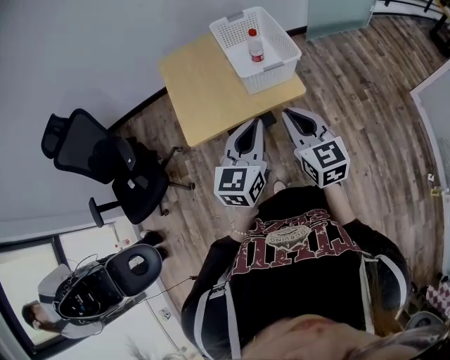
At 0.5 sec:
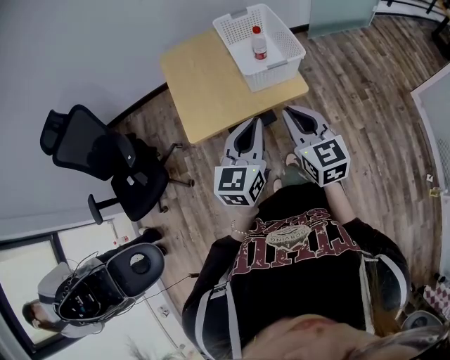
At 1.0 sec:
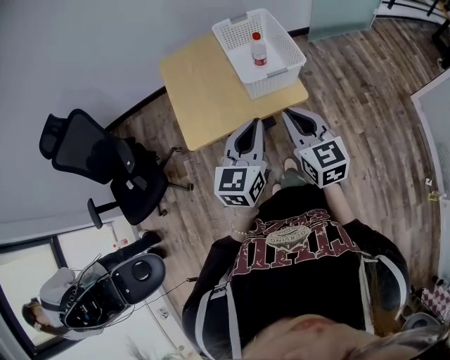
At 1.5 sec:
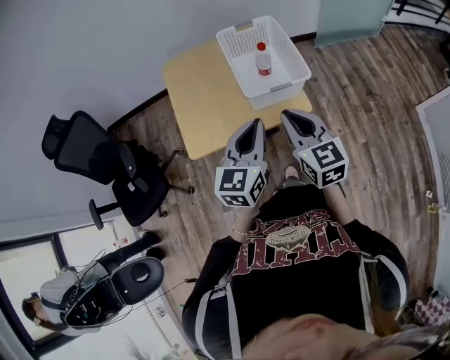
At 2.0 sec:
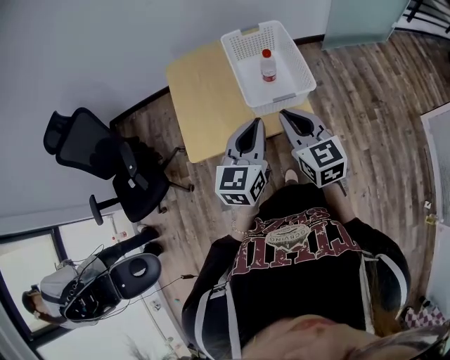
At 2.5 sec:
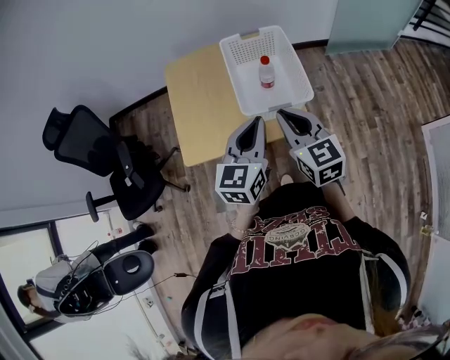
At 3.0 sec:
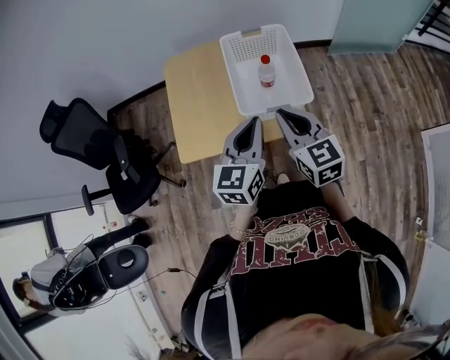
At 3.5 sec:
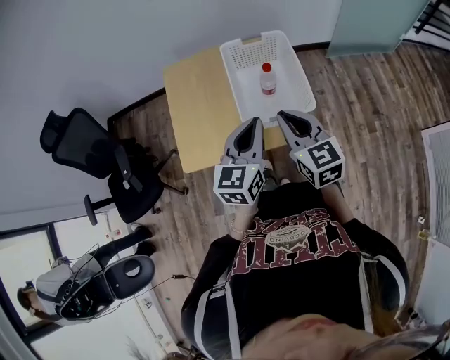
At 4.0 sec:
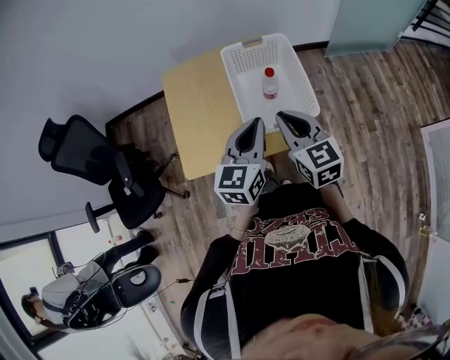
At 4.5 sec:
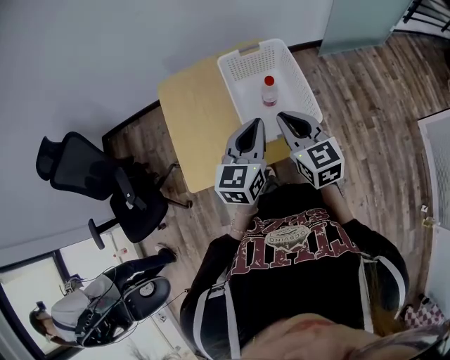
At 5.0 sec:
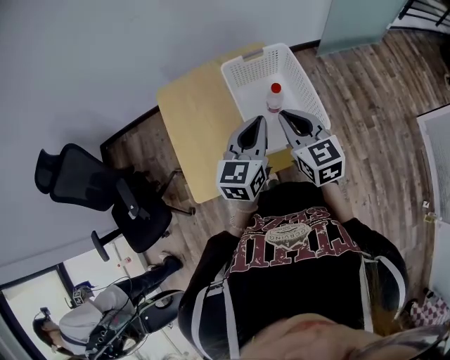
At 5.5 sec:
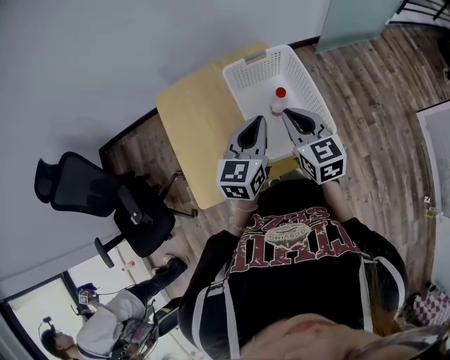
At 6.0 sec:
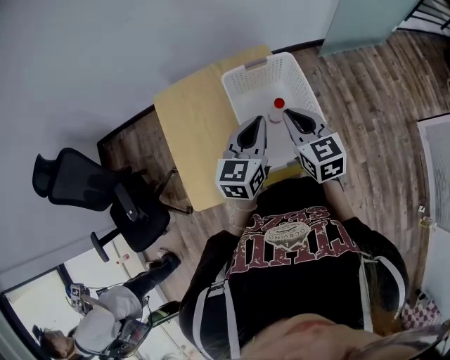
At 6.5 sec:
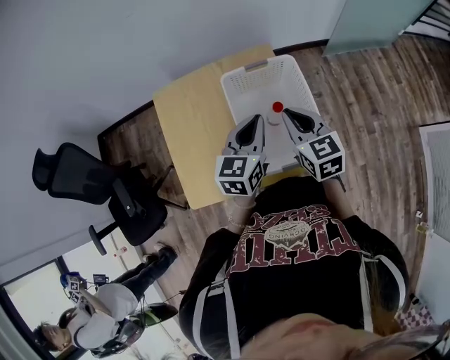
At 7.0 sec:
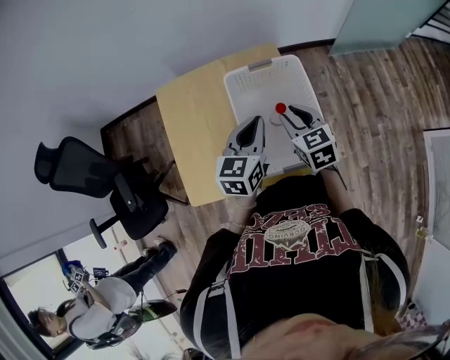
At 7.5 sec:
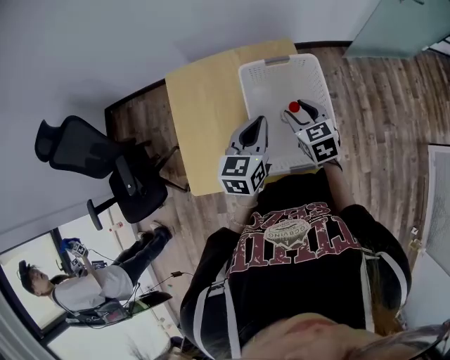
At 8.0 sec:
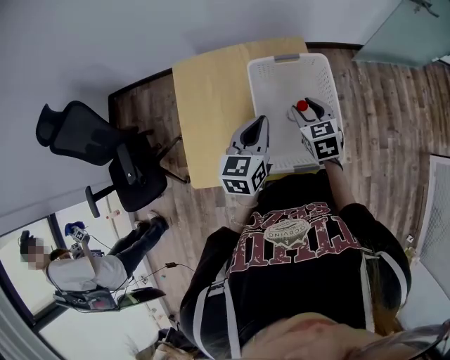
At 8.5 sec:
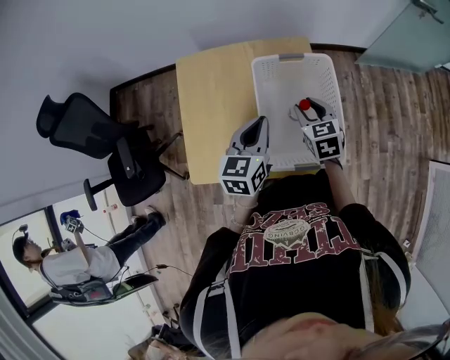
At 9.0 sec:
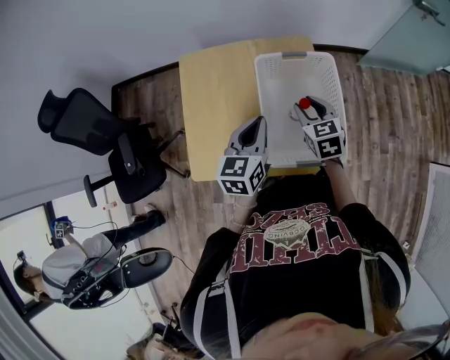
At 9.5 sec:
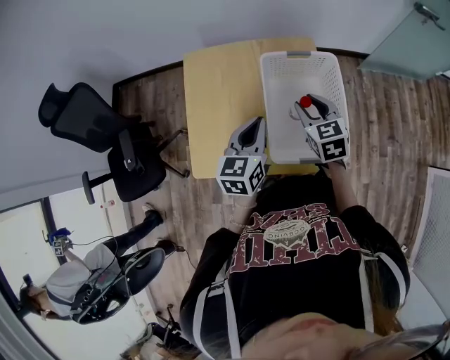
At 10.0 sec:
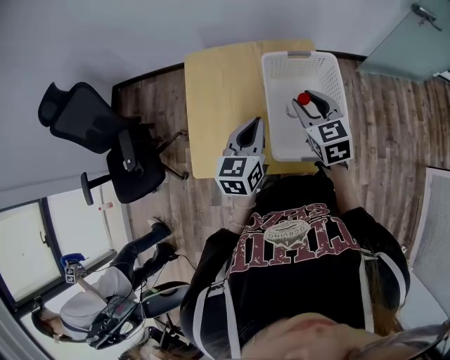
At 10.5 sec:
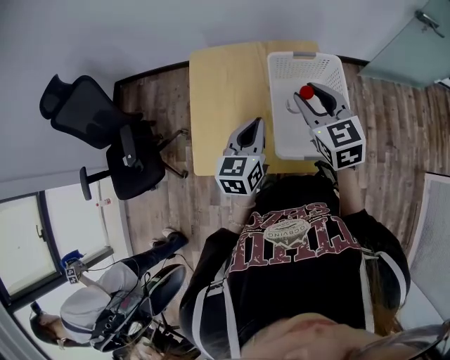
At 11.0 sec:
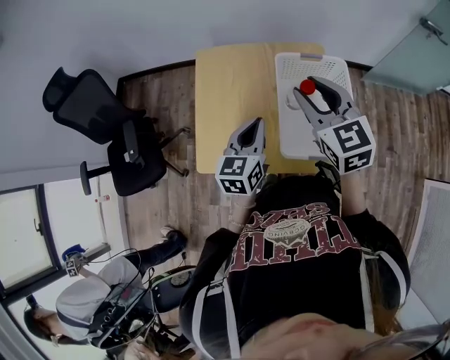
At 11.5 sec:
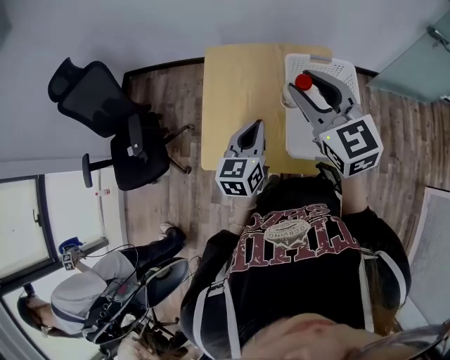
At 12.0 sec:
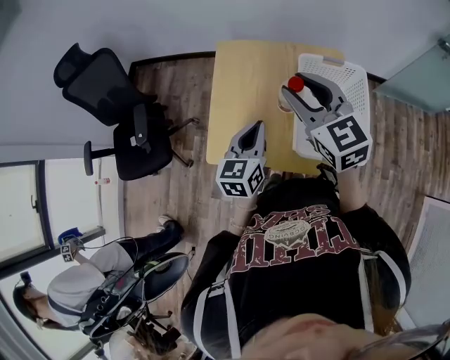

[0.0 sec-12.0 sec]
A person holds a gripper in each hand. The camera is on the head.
0.0 sec to 2.0 sec: The two grippers go some 15 cm forward.
2.0 sec to 4.0 sec: The grippers both shift forward by some 10 cm.
4.0 sec to 6.0 sec: Both grippers move forward, about 15 cm.
6.0 sec to 8.0 sec: The left gripper shifts by roughly 5 cm, while the right gripper goes approximately 10 cm downward and forward, and opens.
8.0 sec to 10.0 sec: The right gripper moves upward, roughly 10 cm, while the left gripper ends up some 5 cm from where it was.
10.0 sec to 12.0 sec: The right gripper travels to the left and upward by approximately 20 cm, and changes its angle by about 20 degrees; the left gripper heads to the left, covering some 10 cm.

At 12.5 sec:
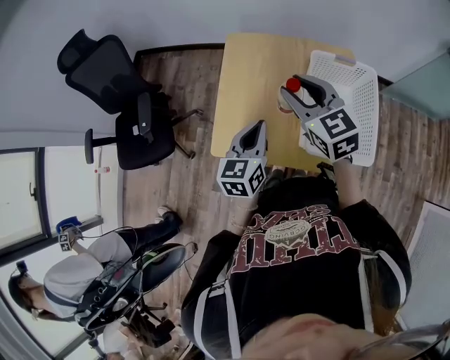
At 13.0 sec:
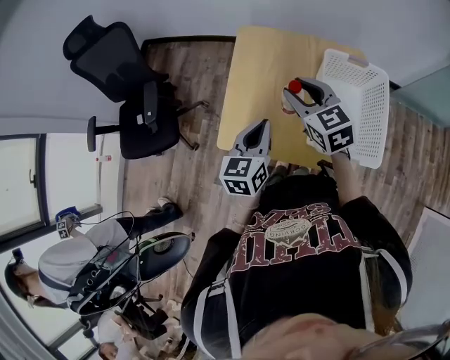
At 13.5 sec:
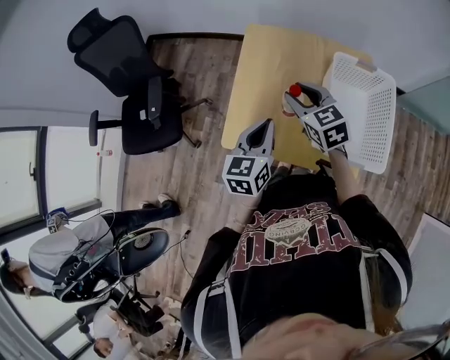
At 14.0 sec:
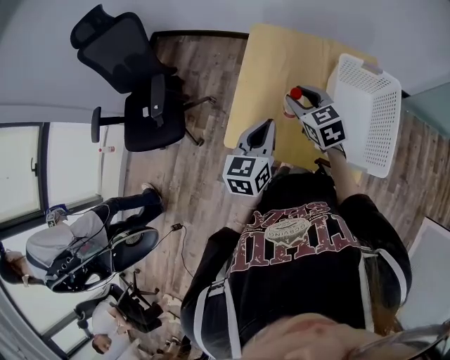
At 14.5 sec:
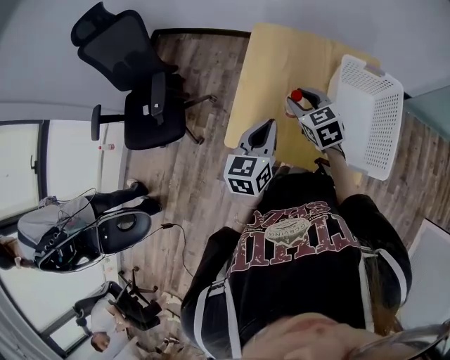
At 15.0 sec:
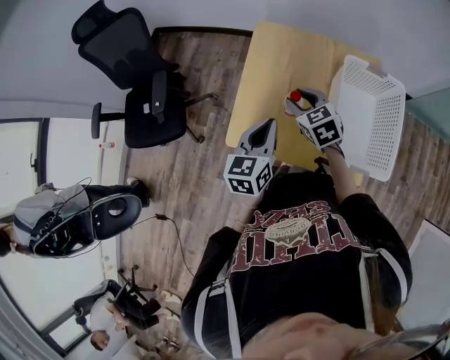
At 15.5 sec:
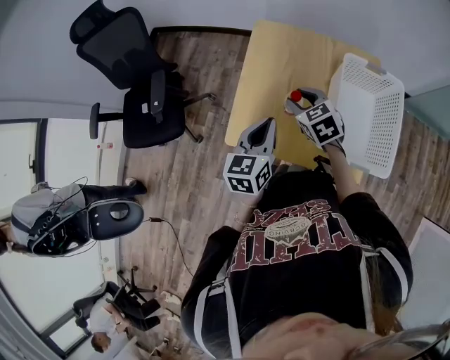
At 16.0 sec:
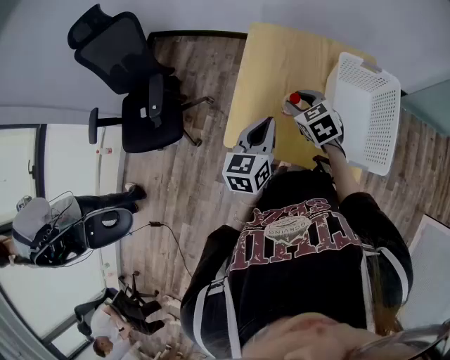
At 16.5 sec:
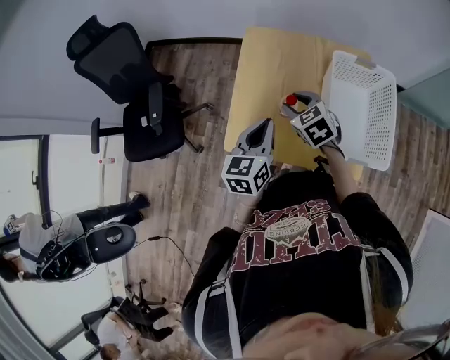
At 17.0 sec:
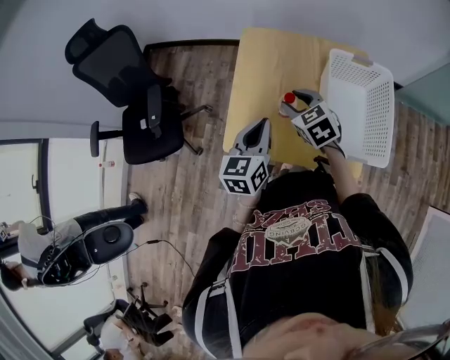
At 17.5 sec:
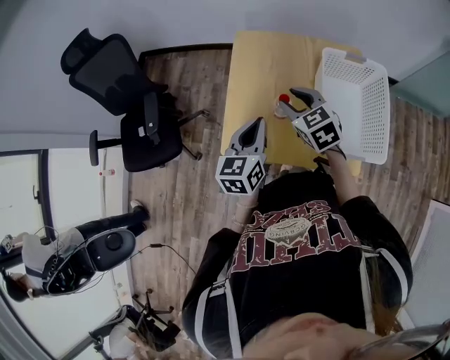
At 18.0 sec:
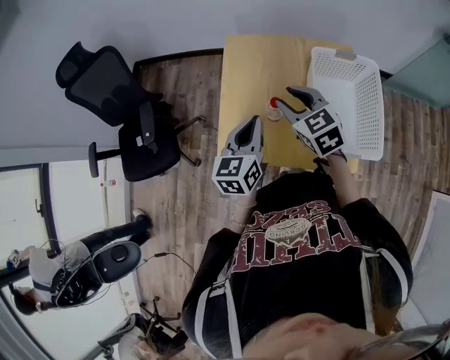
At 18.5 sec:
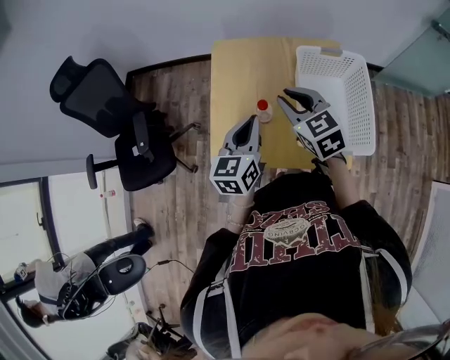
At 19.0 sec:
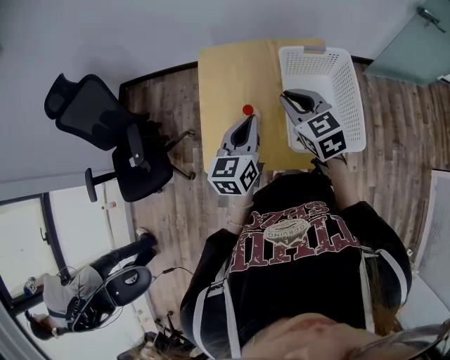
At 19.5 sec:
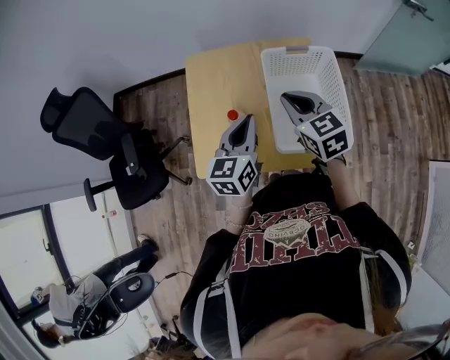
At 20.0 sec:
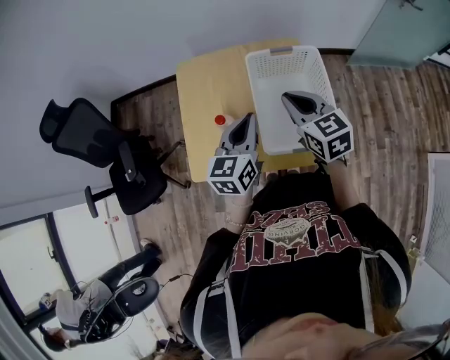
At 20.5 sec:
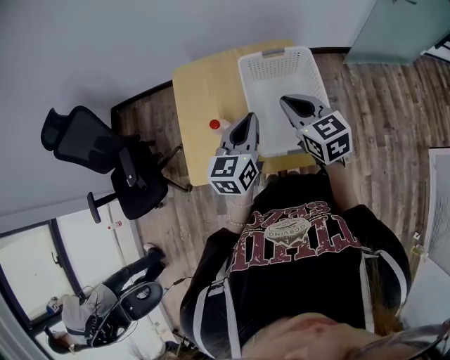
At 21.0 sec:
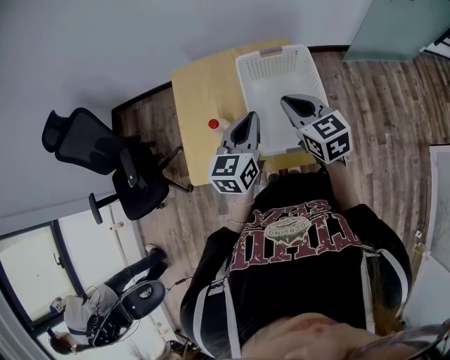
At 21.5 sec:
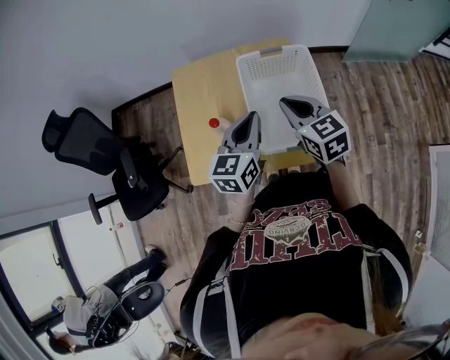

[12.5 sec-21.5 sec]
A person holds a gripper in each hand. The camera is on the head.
12.5 sec to 14.5 sec: The right gripper is displaced downward by approximately 15 cm.
14.5 sec to 17.0 sec: The grippers stay close to where they were, moving slightly.
17.0 sec to 19.5 sec: The right gripper is displaced to the right and upward by approximately 20 cm, turns by approximately 20 degrees, and closes its fingers; the left gripper moves to the right, roughly 15 cm.
19.5 sec to 21.5 sec: Both grippers travel together to the right, approximately 5 cm.

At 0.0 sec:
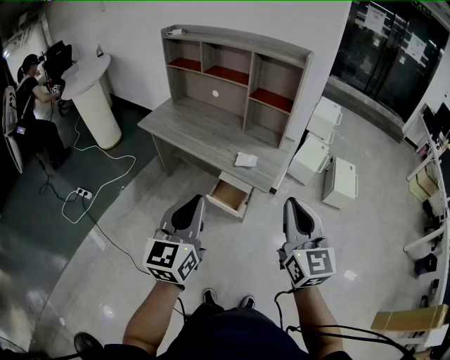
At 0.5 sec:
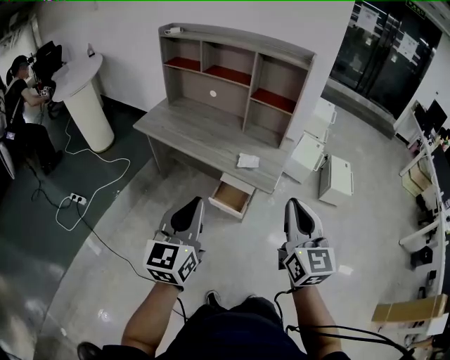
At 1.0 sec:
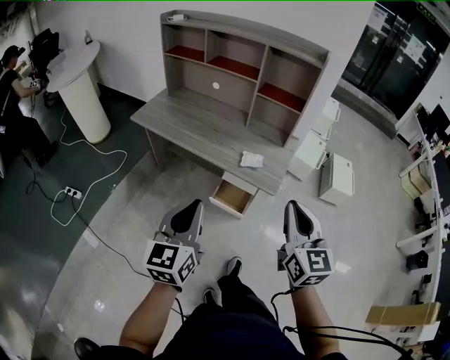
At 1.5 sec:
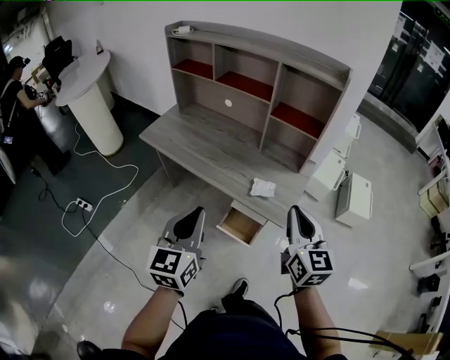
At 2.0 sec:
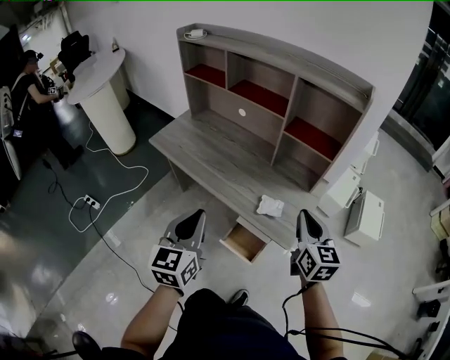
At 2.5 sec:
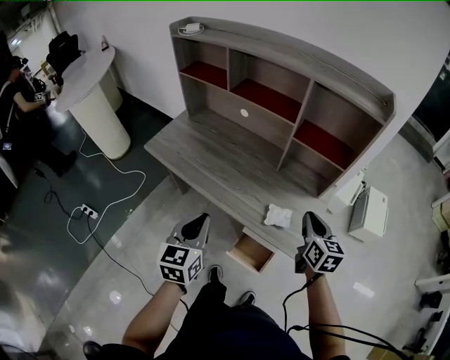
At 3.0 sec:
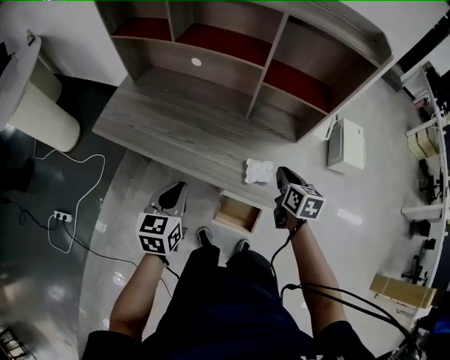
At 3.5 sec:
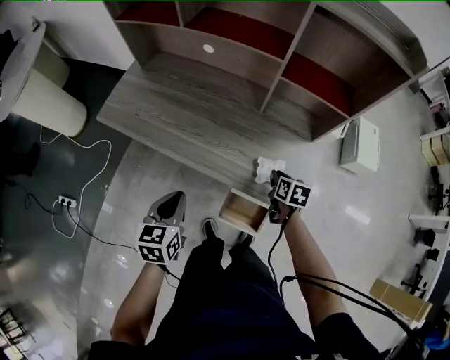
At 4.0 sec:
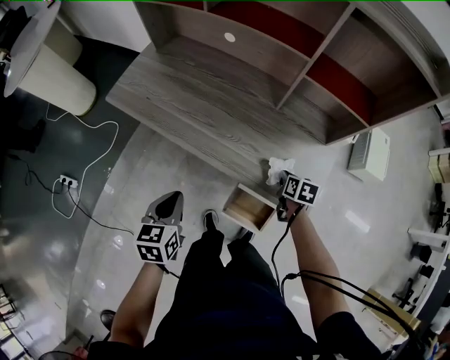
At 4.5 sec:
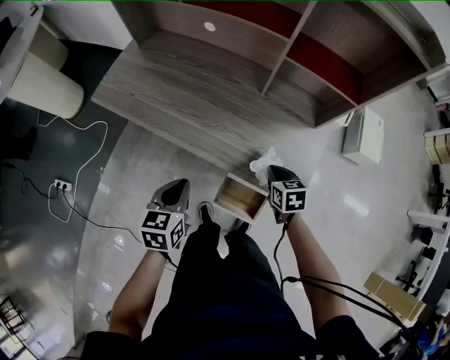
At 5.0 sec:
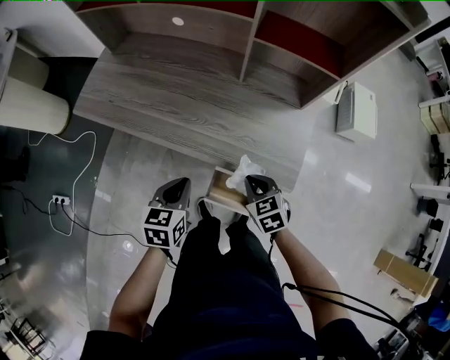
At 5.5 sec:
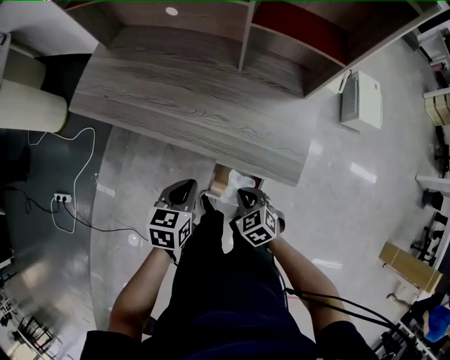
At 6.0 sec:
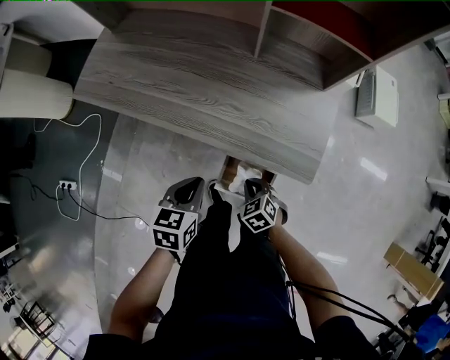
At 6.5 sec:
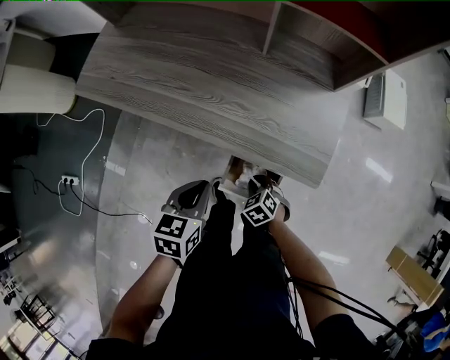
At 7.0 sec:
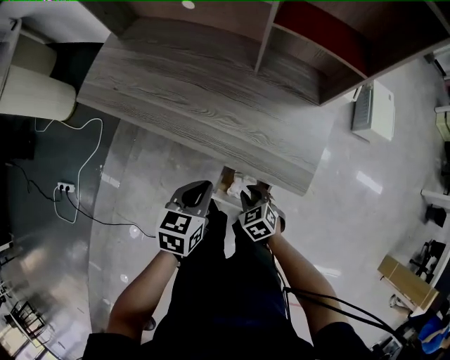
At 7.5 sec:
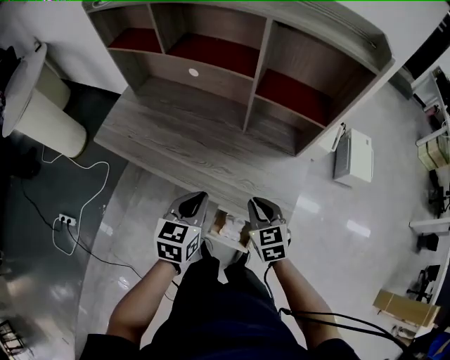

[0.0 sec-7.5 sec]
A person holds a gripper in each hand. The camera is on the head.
0.0 sec to 2.0 sec: Both grippers move forward, roughly 25 cm.
2.0 sec to 4.0 sec: The left gripper shifts roughly 25 cm downward, to the left and forward, and swivels roughly 30 degrees. The right gripper is displaced downward by some 35 cm, and tilts its fingers approximately 40 degrees downward.
4.0 sec to 5.5 sec: The right gripper moves backward and to the left, roughly 20 cm, and rolls counterclockwise, seen from behind, by about 50 degrees, while the left gripper is displaced to the right and downward by some 15 cm.
5.5 sec to 7.5 sec: Both grippers travel together upward and forward, roughly 15 cm. The right gripper rotates roughly 20 degrees.
